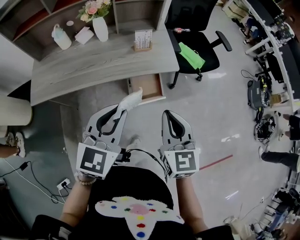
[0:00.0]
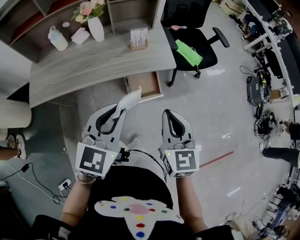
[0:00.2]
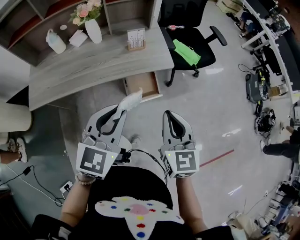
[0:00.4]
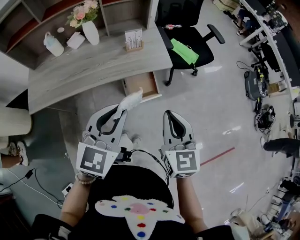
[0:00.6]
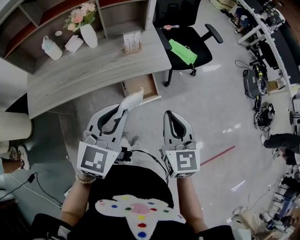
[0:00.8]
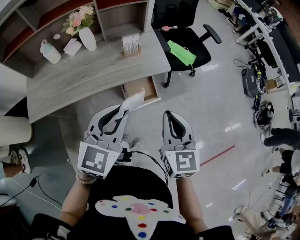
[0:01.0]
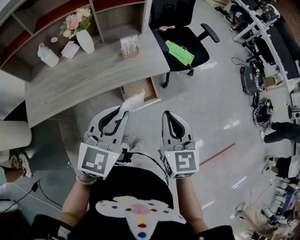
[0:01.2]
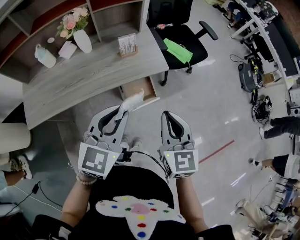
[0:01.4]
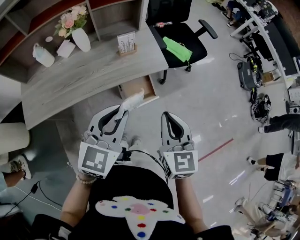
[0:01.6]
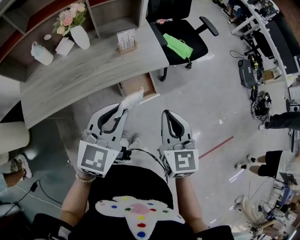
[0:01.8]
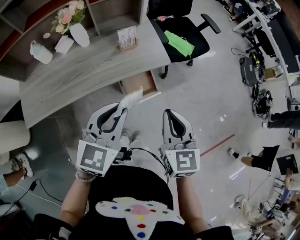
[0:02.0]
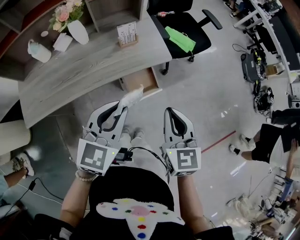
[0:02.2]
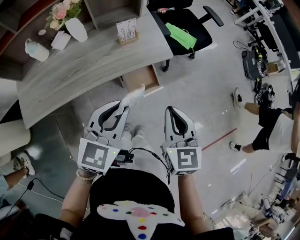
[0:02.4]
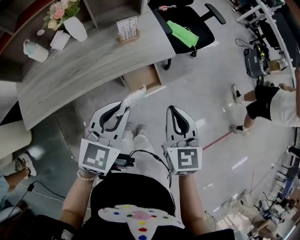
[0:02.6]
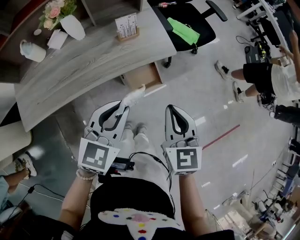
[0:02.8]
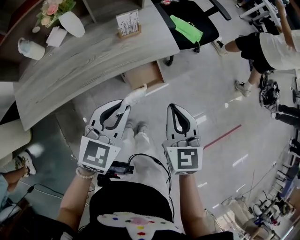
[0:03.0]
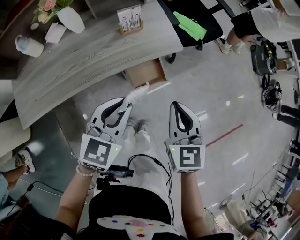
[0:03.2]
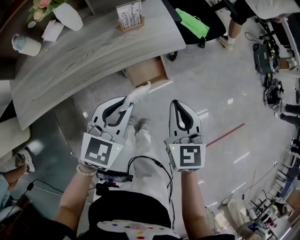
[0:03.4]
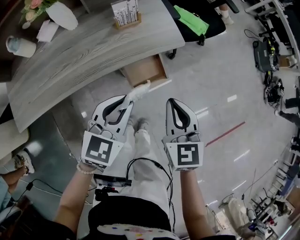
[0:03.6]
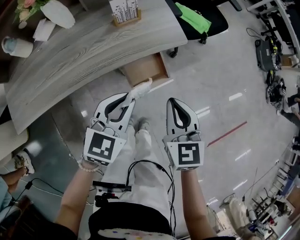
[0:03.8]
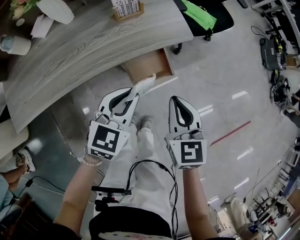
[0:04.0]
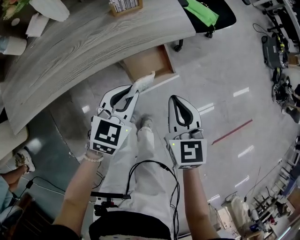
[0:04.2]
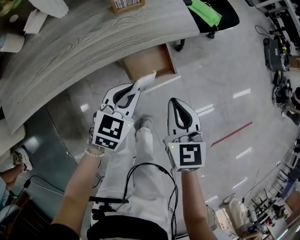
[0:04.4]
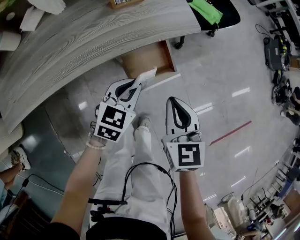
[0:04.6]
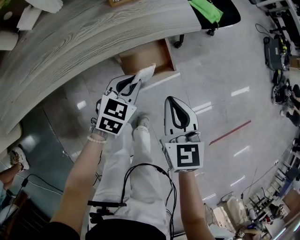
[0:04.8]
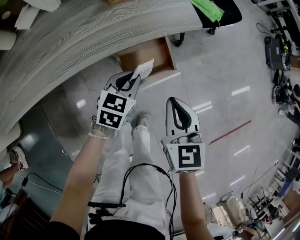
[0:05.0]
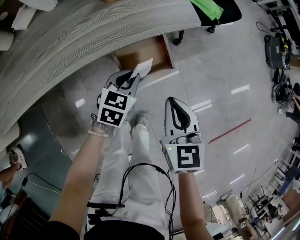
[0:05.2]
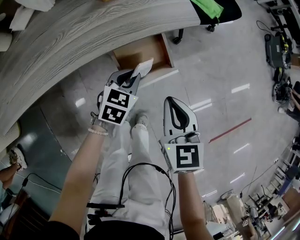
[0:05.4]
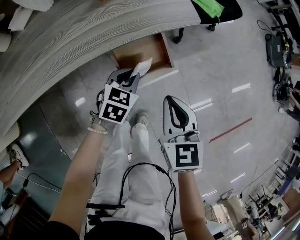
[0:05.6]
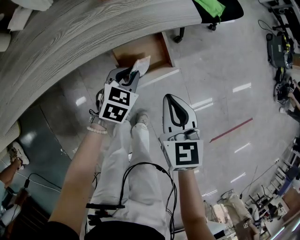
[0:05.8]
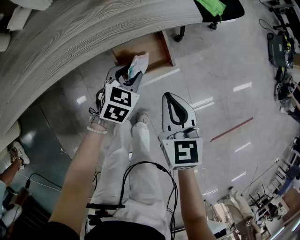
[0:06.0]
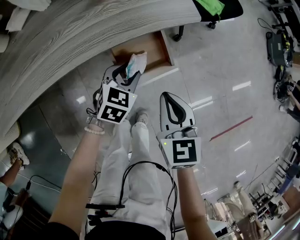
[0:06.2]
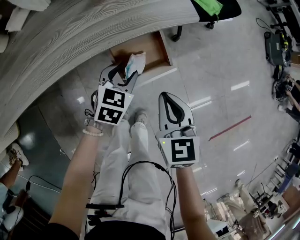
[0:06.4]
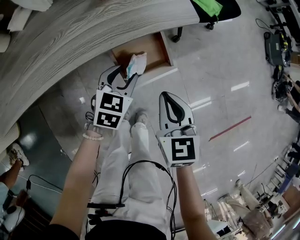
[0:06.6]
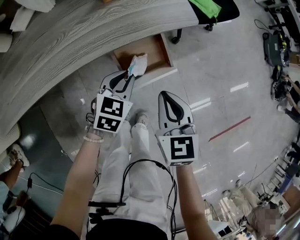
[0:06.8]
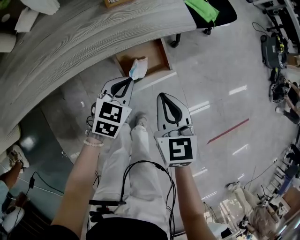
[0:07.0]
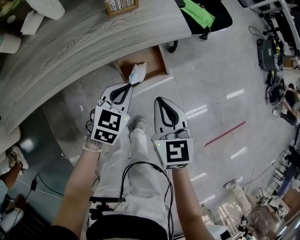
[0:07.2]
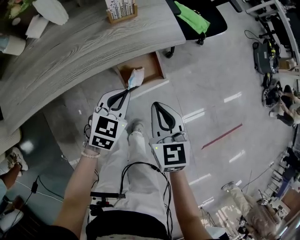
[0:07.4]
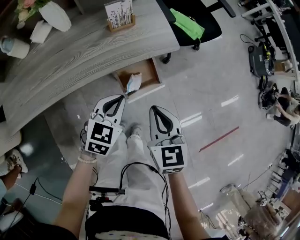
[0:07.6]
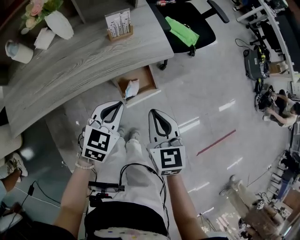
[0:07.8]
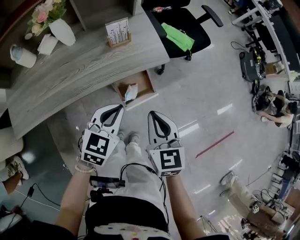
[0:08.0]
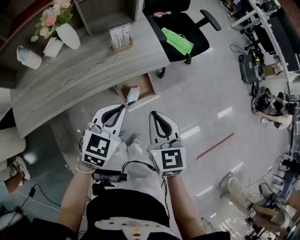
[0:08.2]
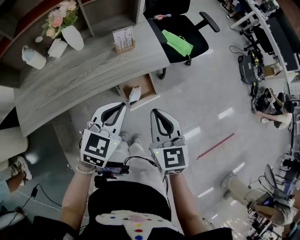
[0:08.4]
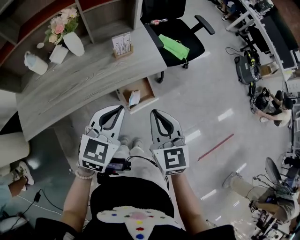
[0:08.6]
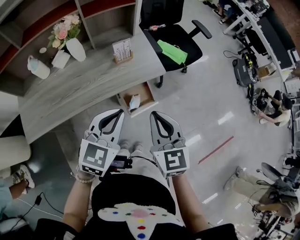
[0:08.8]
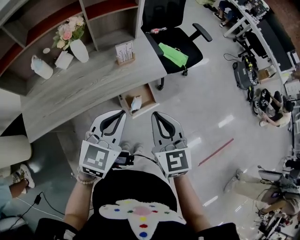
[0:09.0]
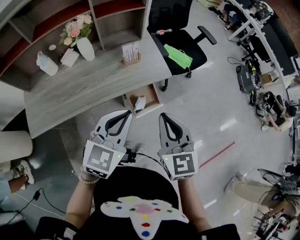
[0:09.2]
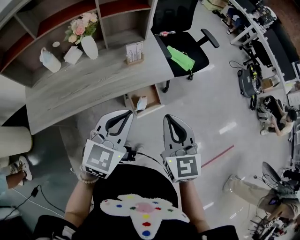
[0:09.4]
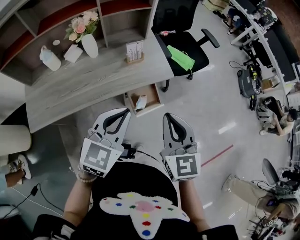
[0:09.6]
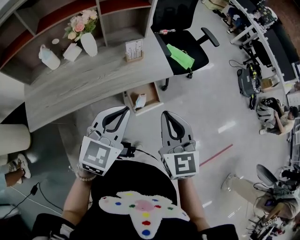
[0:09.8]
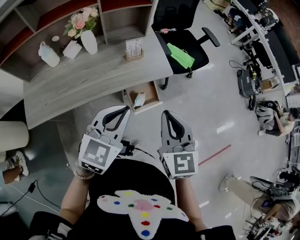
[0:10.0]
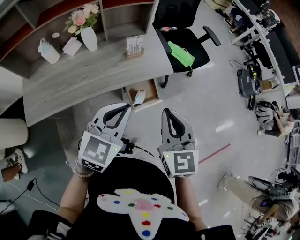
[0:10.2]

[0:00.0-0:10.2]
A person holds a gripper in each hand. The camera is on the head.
0.0 to 1.4 s: The grippers move only a little.
1.4 to 3.0 s: The grippers both shift downward by about 10 cm.
3.0 to 4.4 s: Both grippers move downward, approximately 20 cm.
4.4 to 5.8 s: The left gripper goes some 10 cm downward.
5.8 to 7.2 s: The left gripper is displaced upward by approximately 10 cm, and opens, then closes again; the right gripper ends up some 5 cm from where it was.
7.2 to 8.8 s: The two grippers go roughly 25 cm upward.
8.8 to 10.2 s: The grippers stay close to where they were, moving slightly.

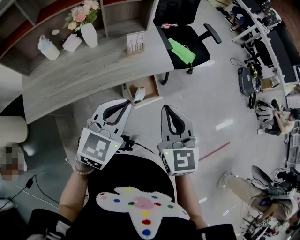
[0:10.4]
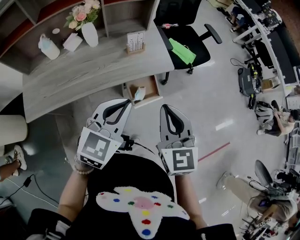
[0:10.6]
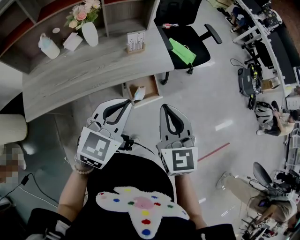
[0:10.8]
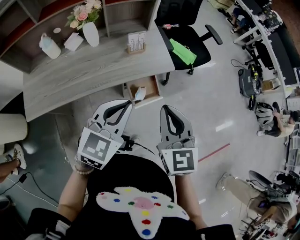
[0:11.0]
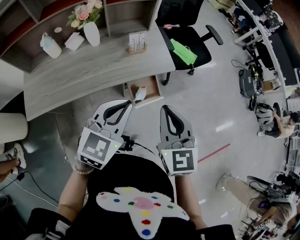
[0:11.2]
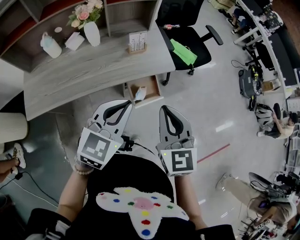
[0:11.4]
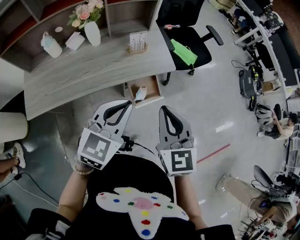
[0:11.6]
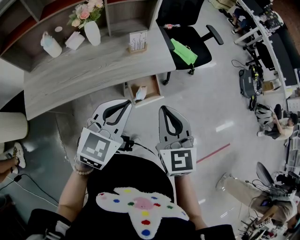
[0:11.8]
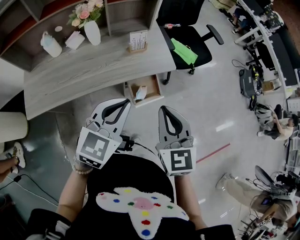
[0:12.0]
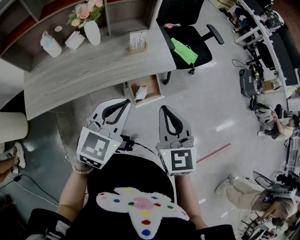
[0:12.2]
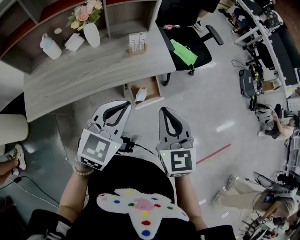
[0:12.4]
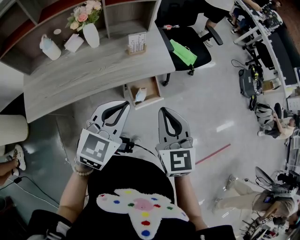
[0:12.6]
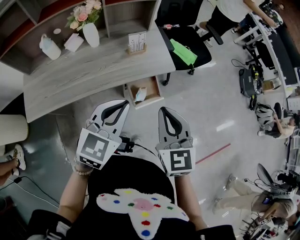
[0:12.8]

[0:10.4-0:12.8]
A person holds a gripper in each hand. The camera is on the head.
10.4 to 11.6 s: The grippers stay close to where they were, moving slightly.
11.6 to 12.8 s: Neither gripper changes place.

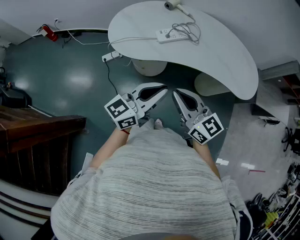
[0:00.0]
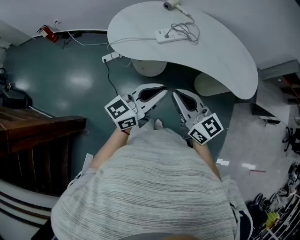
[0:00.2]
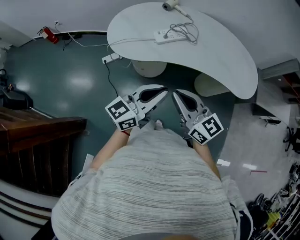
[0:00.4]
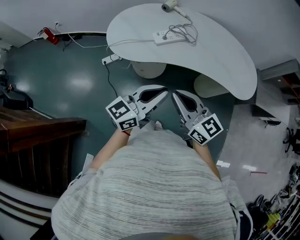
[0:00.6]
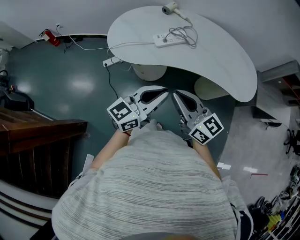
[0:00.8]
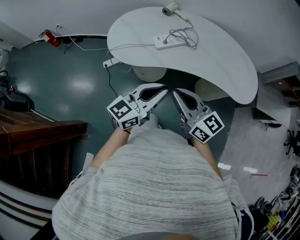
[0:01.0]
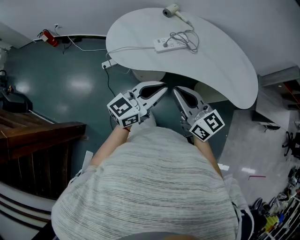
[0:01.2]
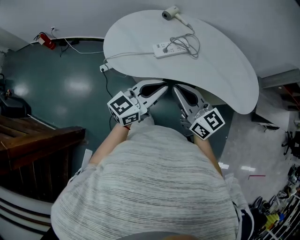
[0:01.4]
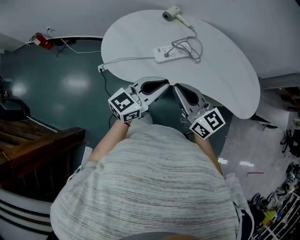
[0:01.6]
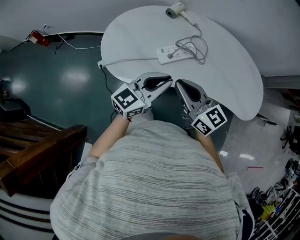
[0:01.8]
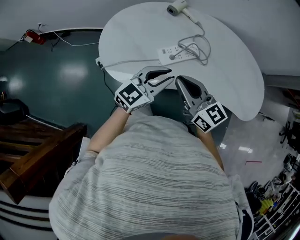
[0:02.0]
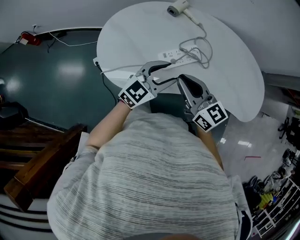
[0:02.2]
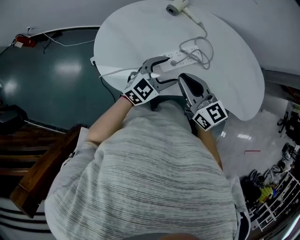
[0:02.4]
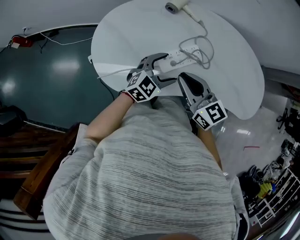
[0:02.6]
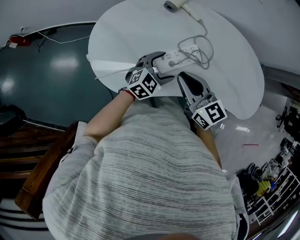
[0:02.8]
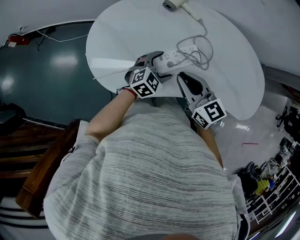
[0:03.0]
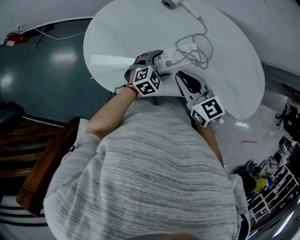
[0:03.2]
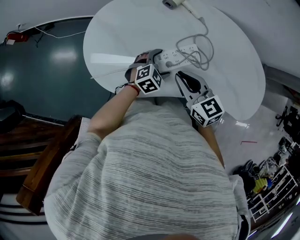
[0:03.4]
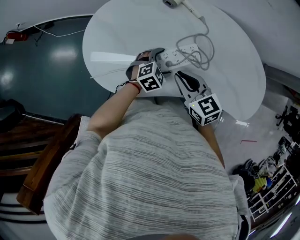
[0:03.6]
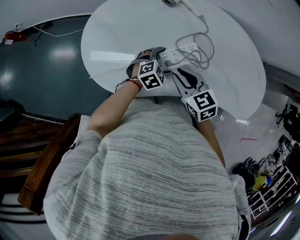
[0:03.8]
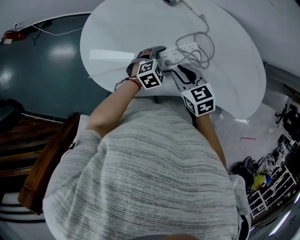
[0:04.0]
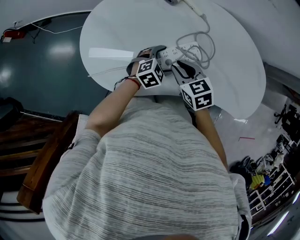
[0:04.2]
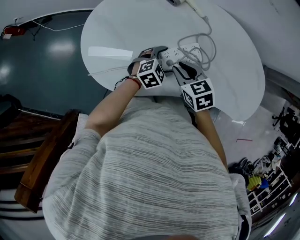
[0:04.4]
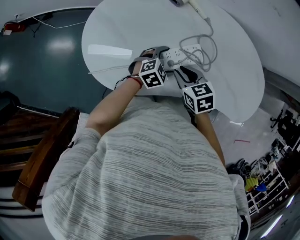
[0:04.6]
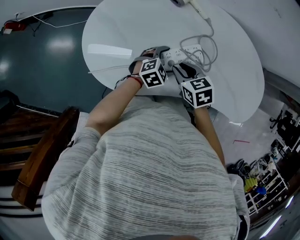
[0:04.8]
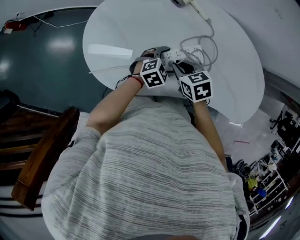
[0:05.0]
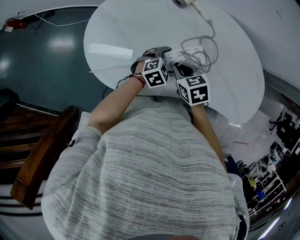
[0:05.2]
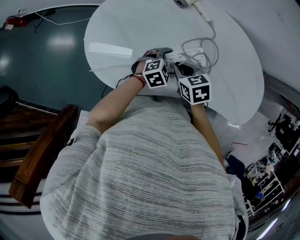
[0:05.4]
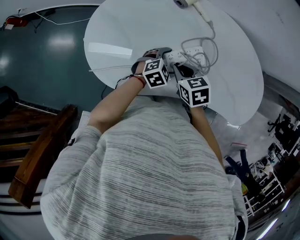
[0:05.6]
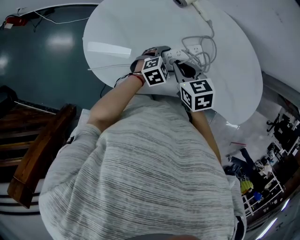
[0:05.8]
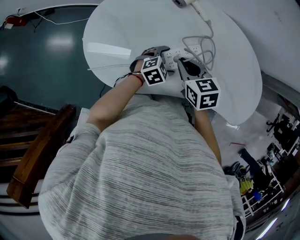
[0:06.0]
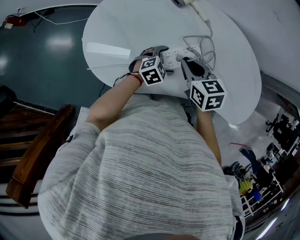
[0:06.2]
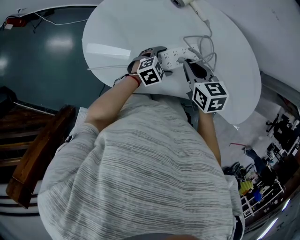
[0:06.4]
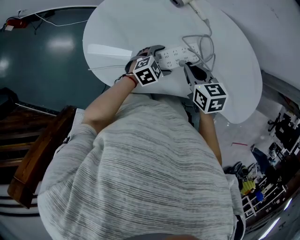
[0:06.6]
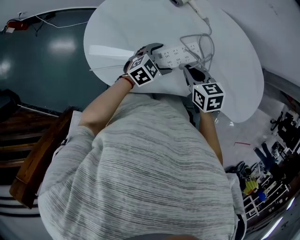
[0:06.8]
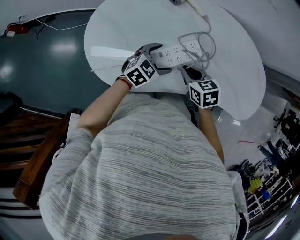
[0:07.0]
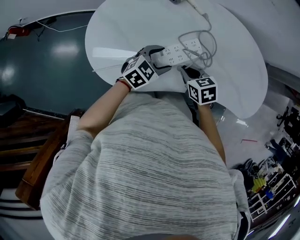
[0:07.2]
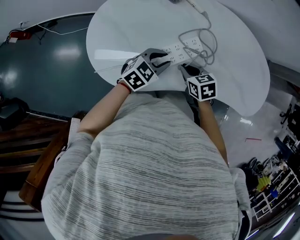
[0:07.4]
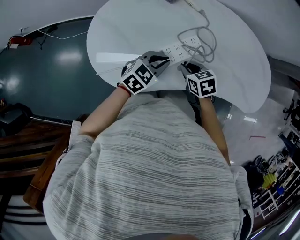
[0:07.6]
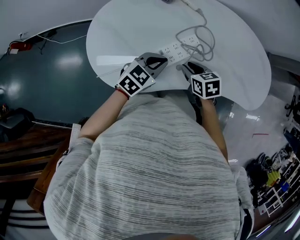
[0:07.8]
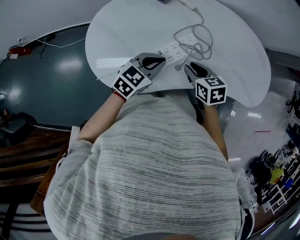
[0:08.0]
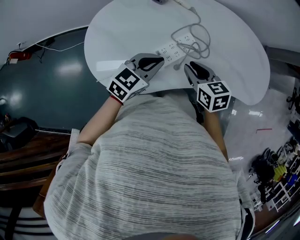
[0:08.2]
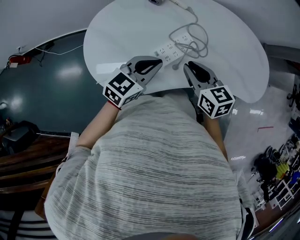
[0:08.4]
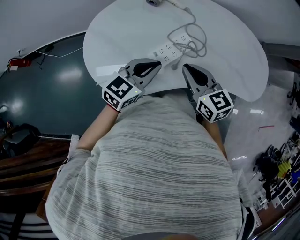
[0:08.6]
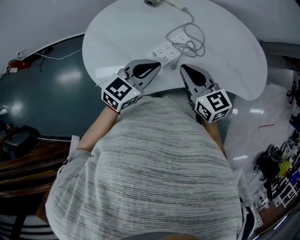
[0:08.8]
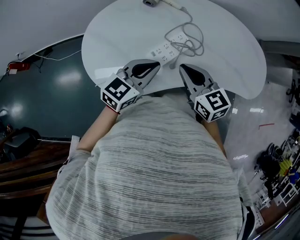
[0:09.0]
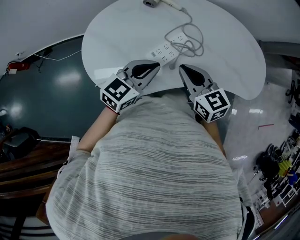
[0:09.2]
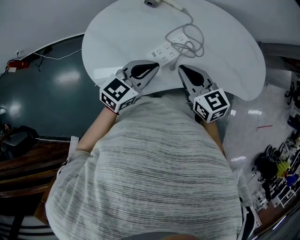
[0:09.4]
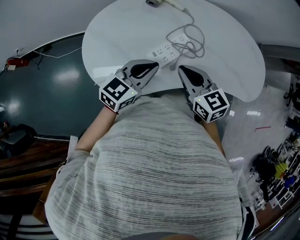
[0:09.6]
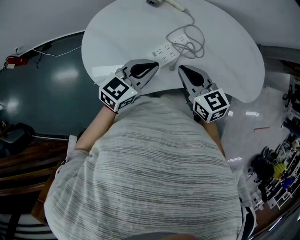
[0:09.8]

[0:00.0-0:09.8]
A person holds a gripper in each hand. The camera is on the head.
0.0 to 1.4 s: Both grippers travel together forward, about 10 cm.
1.4 to 2.8 s: The left gripper is displaced forward and downward by some 30 cm, tilts its fingers some 30 degrees downward, and opens its fingers; the right gripper shifts about 25 cm forward.
2.8 to 4.2 s: Both grippers move downward, approximately 10 cm. The right gripper angles its fingers downward, by roughly 30 degrees.
4.2 to 5.6 s: There are only small adjustments of the grippers.
5.6 to 7.0 s: The left gripper is displaced upward by some 5 cm. The right gripper shifts by approximately 5 cm.
7.0 to 8.4 s: The two grippers go approximately 10 cm upward. The left gripper closes its fingers, while the right gripper changes its angle by some 30 degrees.
8.4 to 9.8 s: The grippers stay close to where they were, moving slightly.

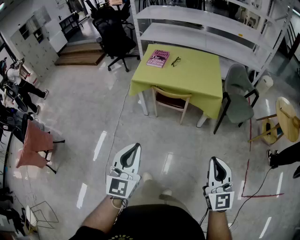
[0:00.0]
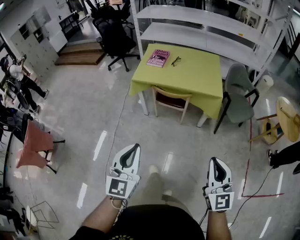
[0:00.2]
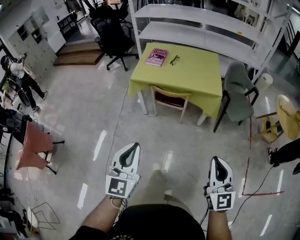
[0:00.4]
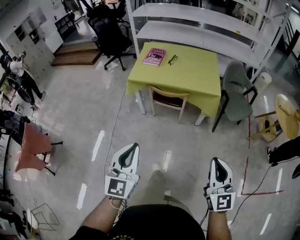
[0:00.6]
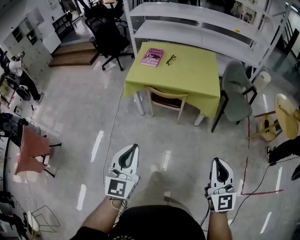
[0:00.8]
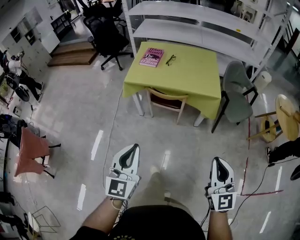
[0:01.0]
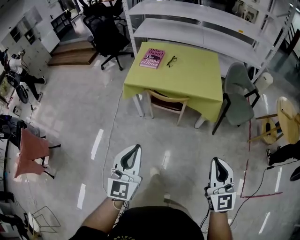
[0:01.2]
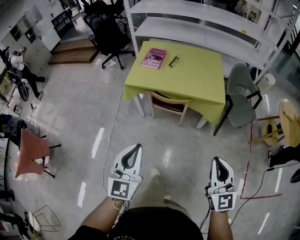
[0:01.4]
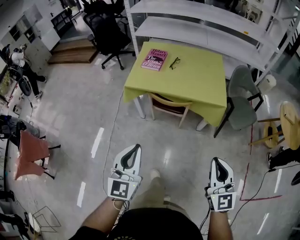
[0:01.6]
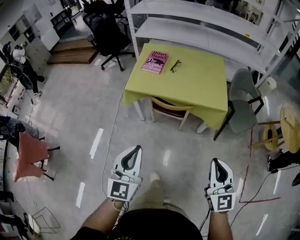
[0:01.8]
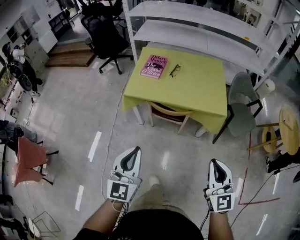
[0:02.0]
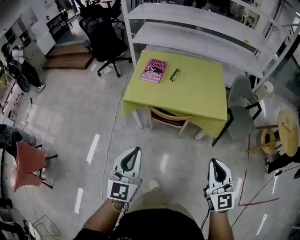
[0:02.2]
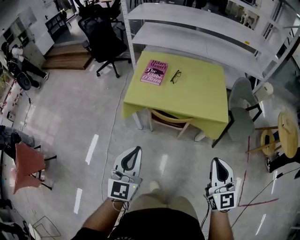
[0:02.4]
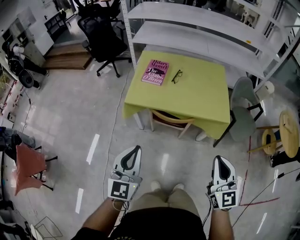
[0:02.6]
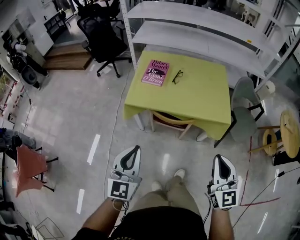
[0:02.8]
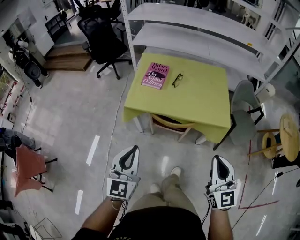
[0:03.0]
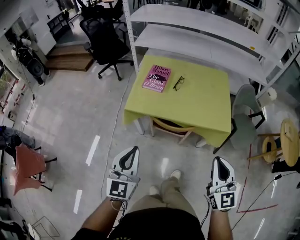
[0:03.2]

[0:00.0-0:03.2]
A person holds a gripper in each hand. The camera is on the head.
0.0 to 1.6 s: The grippers both shift forward by roughly 15 cm.
1.6 to 3.2 s: Both grippers travel together forward, approximately 20 cm.
